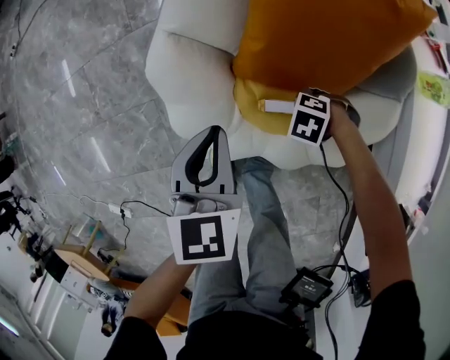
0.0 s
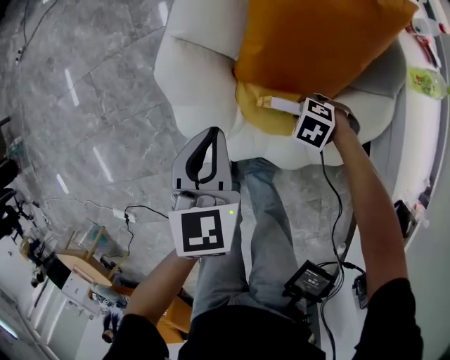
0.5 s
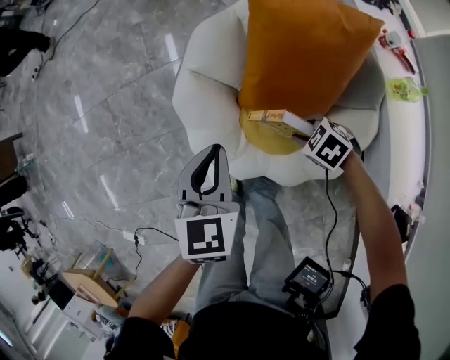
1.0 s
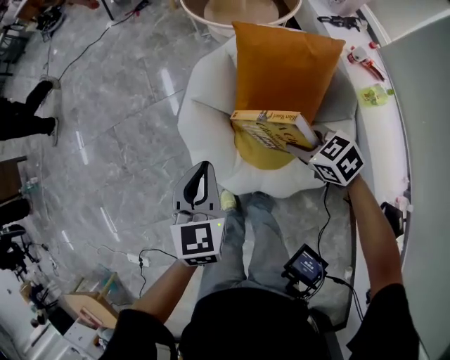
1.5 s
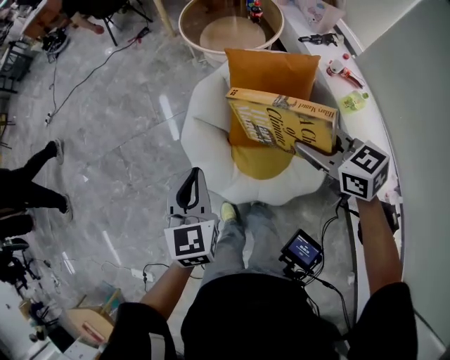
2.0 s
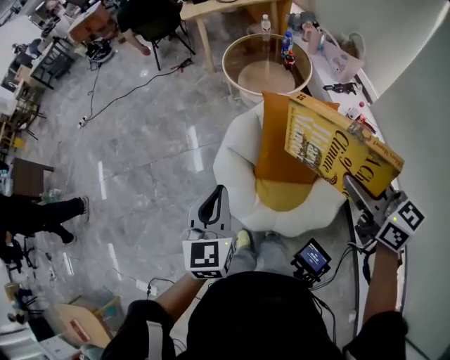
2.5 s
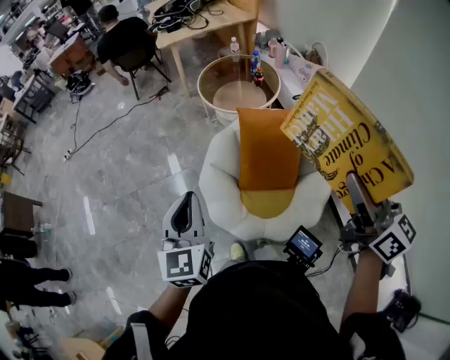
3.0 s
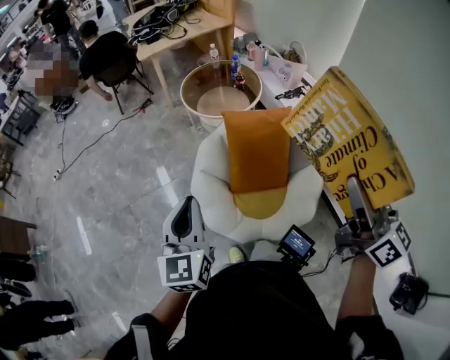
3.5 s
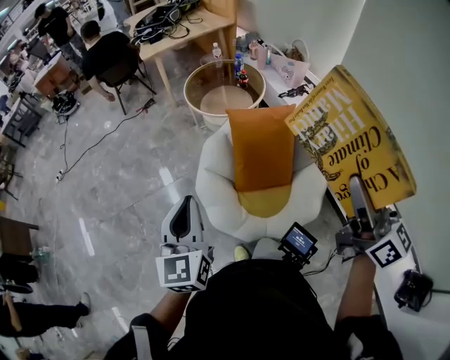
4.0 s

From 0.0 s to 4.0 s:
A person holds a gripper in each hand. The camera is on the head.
From 0.0 s to 2.0 s: The right gripper is displaced upward by roughly 50 cm, and tilts its fingers about 40 degrees upward, while the left gripper heads upward, covering approximately 30 cm.
From 2.0 s to 4.0 s: The right gripper moves upward and backward, about 30 cm, and tilts its fingers some 50 degrees upward. The left gripper shifts about 15 cm upward, and turns by approximately 20 degrees.

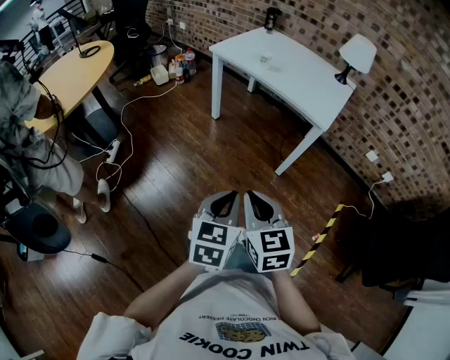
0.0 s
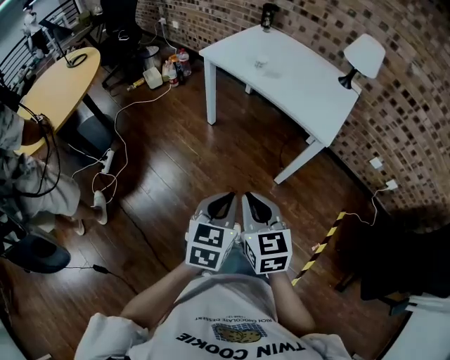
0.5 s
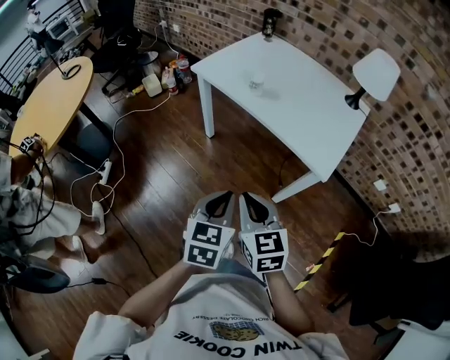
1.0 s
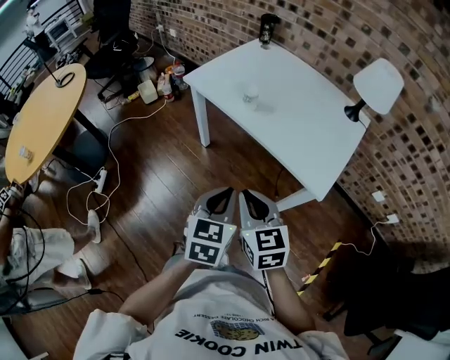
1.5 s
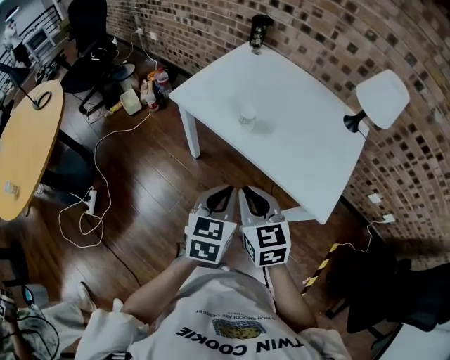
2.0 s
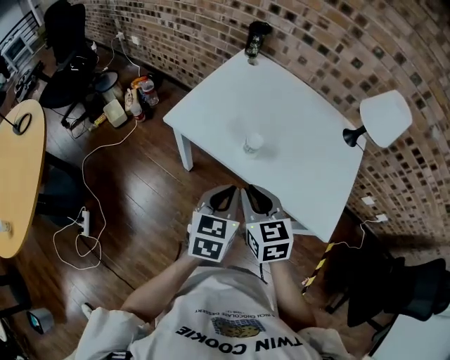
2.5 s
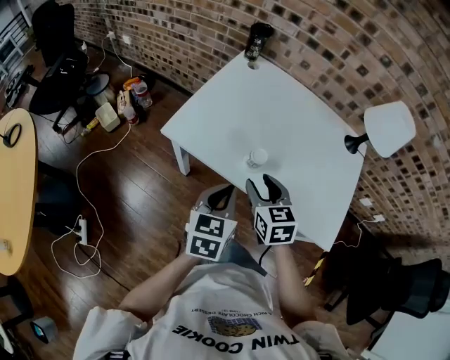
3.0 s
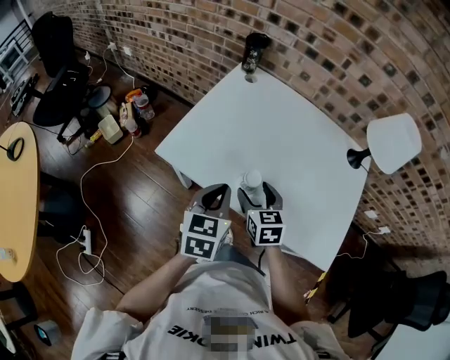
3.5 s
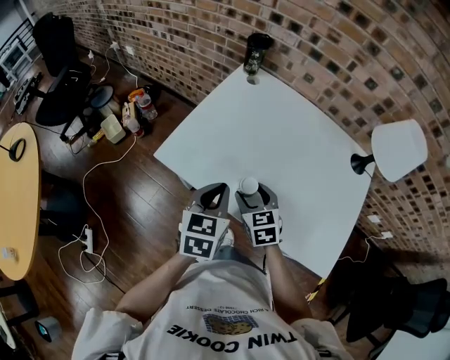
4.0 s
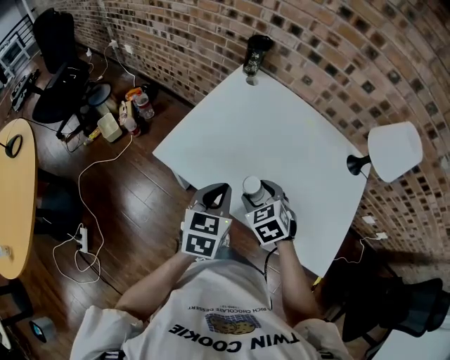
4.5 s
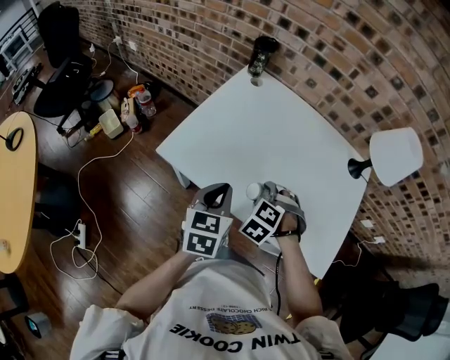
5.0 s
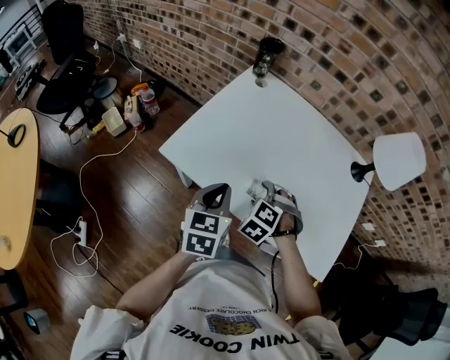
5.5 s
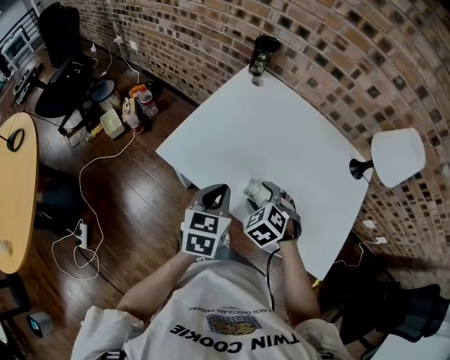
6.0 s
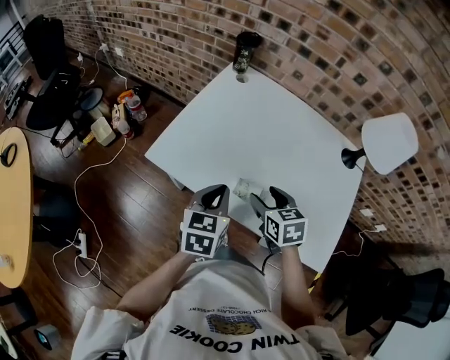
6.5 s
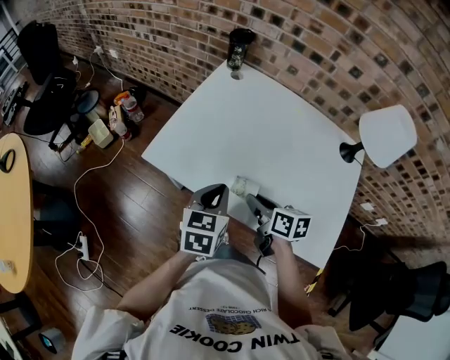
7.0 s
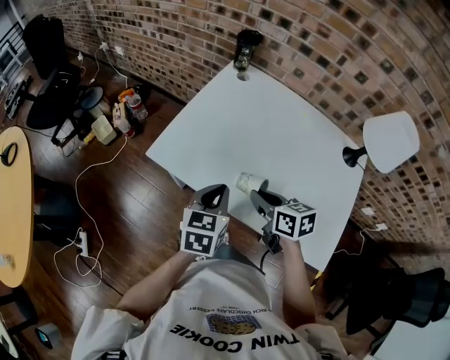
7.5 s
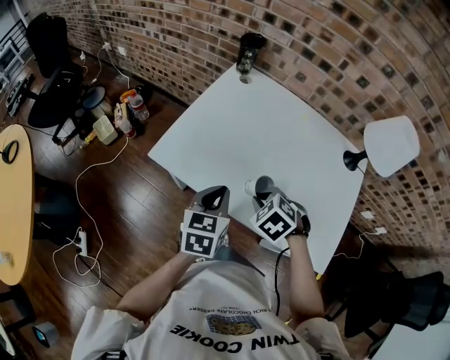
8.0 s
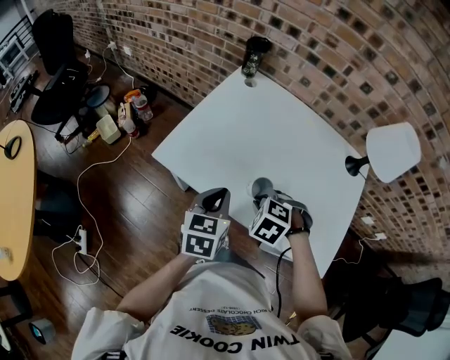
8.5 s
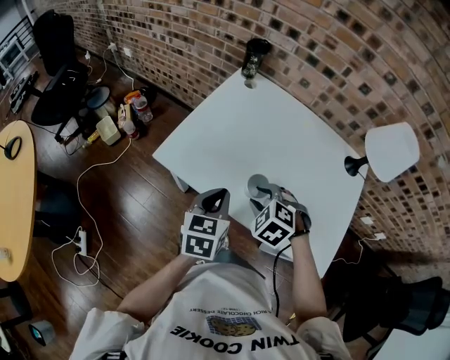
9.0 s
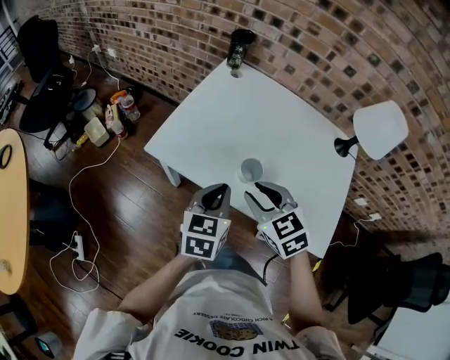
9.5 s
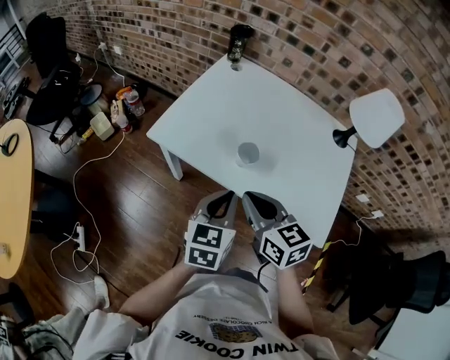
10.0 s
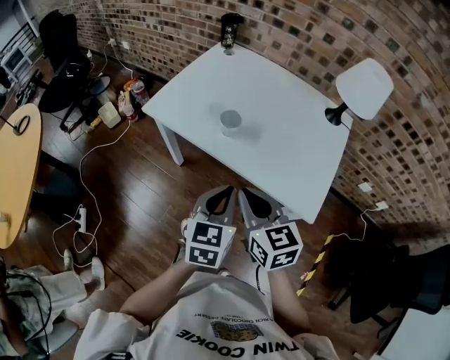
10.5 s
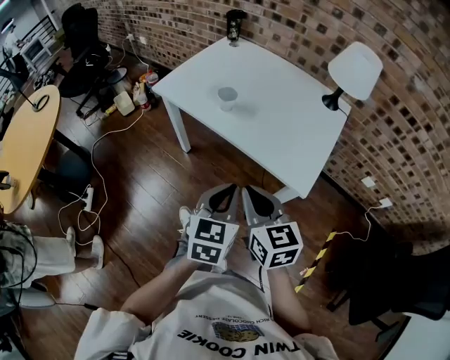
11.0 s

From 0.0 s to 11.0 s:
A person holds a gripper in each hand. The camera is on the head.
From 0.0 s to 2.0 s: Both grippers are carried forward, some 50 cm.
From 2.0 s to 3.5 s: Both grippers travel together forward, about 25 cm. The right gripper opens.
From 3.5 s to 5.5 s: The right gripper rolls counterclockwise, seen from behind, by roughly 60 degrees.
From 5.5 s to 7.5 s: The right gripper shifts approximately 5 cm upward, rolls clockwise, seen from behind, by approximately 70 degrees, and closes its fingers.
From 7.5 s to 9.0 s: The right gripper twists approximately 60 degrees counterclockwise, seen from behind, and opens up.
From 9.0 s to 11.0 s: The right gripper moves backward, about 35 cm, tips its fingers upward by approximately 40 degrees, and closes, while the left gripper heads backward and to the right, covering about 40 cm.

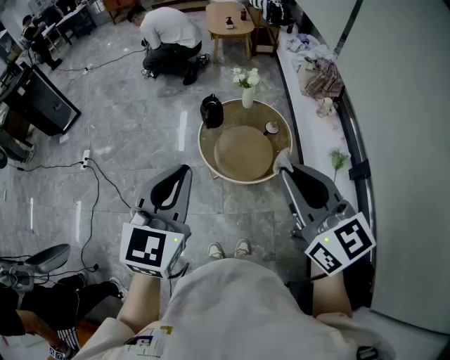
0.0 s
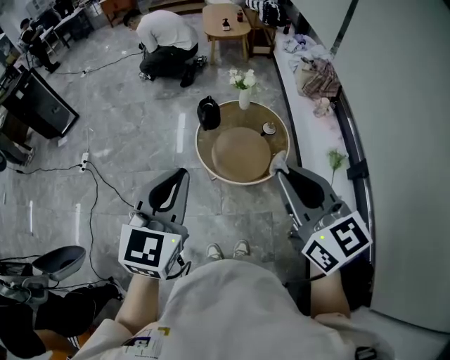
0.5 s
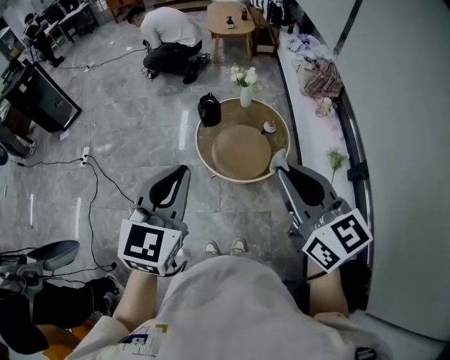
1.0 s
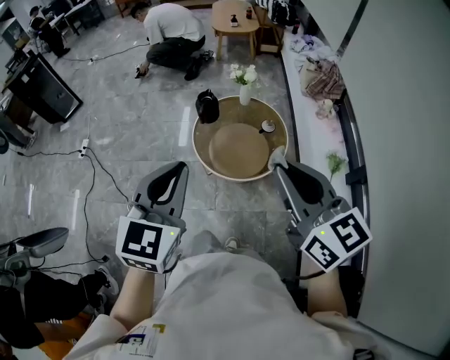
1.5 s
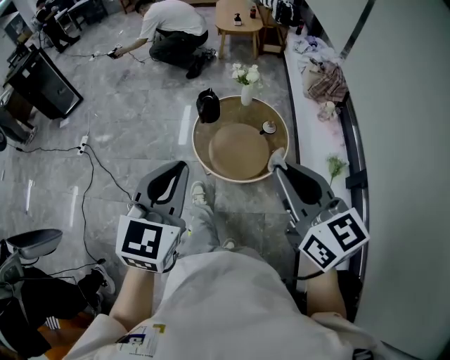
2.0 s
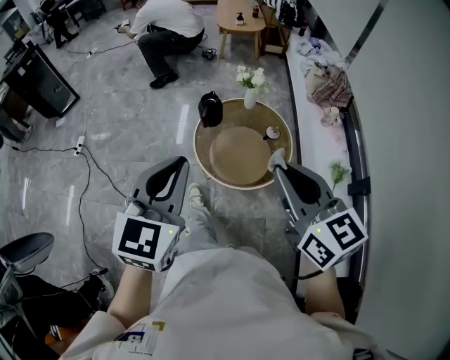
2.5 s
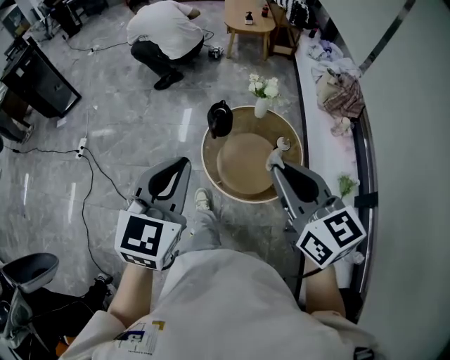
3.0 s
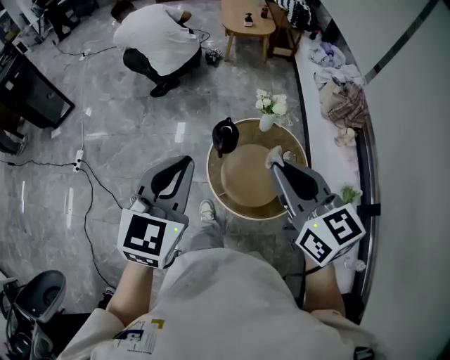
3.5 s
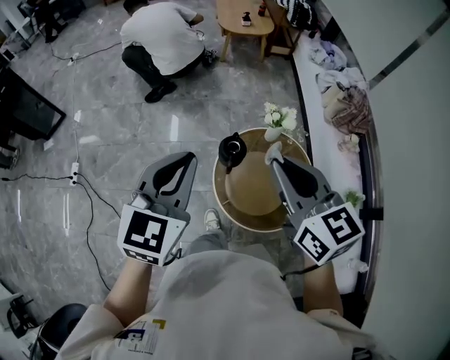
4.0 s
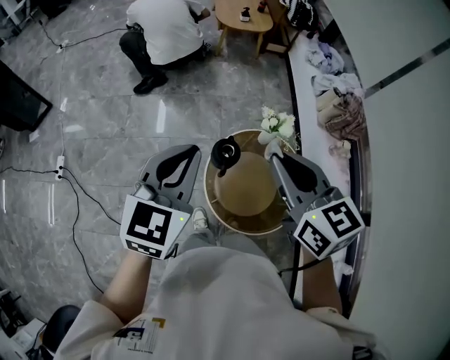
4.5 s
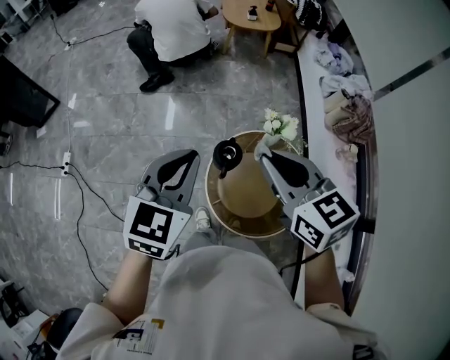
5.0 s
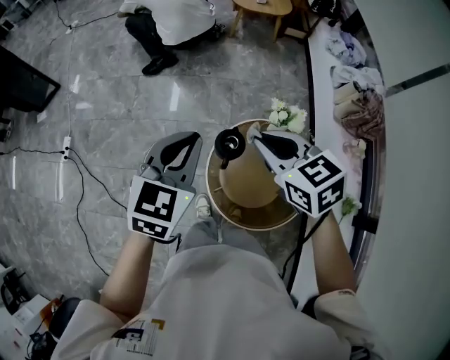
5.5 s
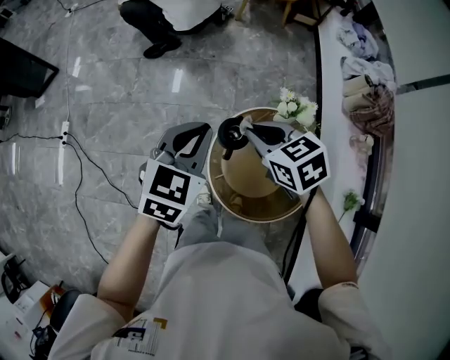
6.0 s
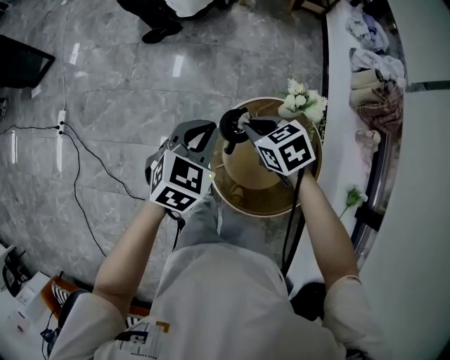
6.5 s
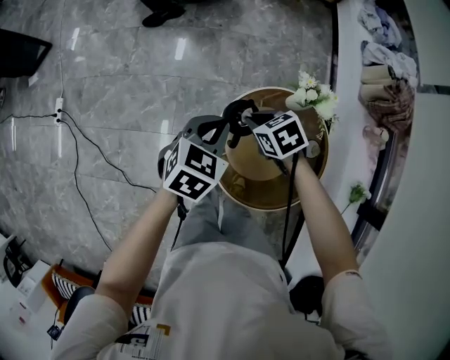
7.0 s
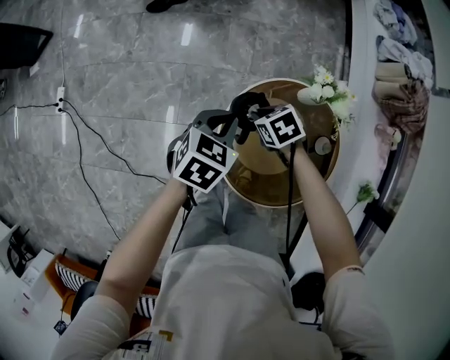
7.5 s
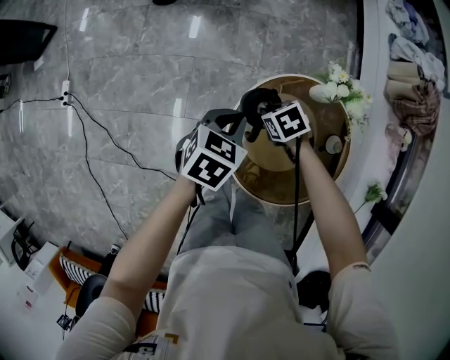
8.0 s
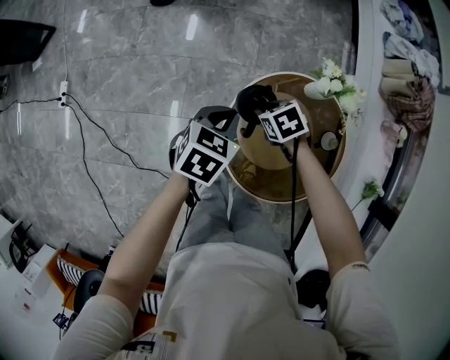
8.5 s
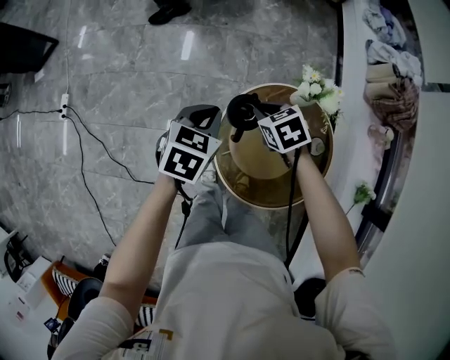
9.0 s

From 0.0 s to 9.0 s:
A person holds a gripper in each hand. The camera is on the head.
From 0.0 s to 2.0 s: The left gripper moves roughly 5 cm, while the right gripper shifts approximately 5 cm to the right.
From 2.0 s to 4.5 s: The two grippers travel together, forward, approximately 50 cm.
From 4.5 s to 7.0 s: The two grippers go about 35 cm downward. The right gripper angles its fingers downward, by approximately 40 degrees, while the left gripper changes its angle by some 30 degrees.
From 7.0 s to 9.0 s: The right gripper moves roughly 15 cm downward and comes back, while the left gripper reaches some 10 cm downward, then returns.

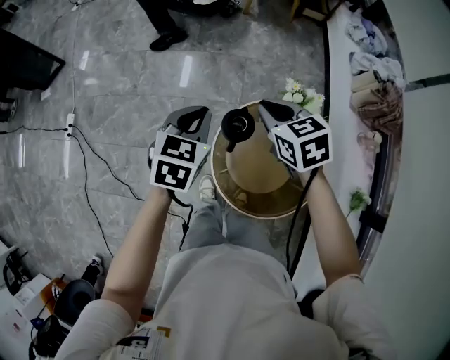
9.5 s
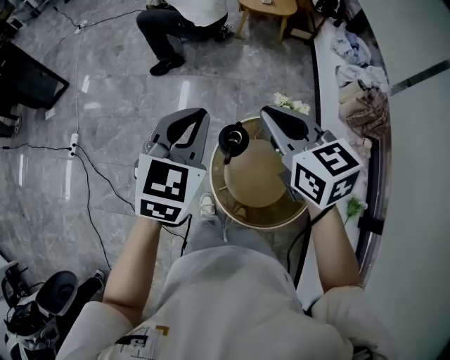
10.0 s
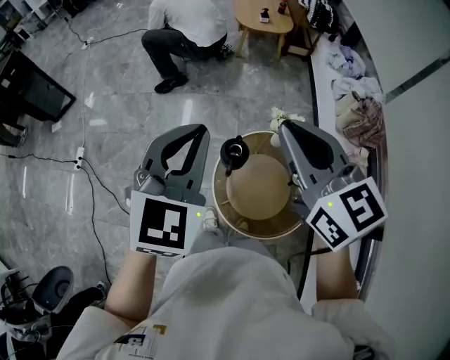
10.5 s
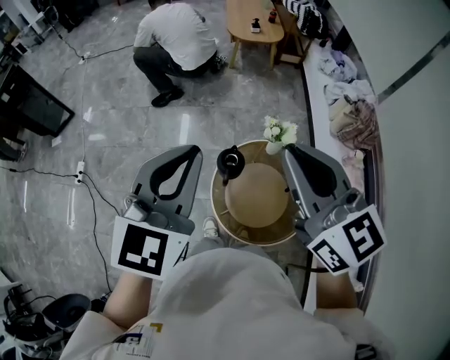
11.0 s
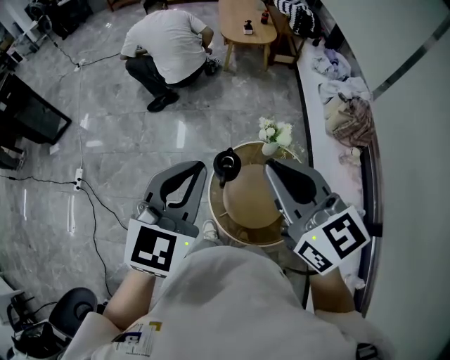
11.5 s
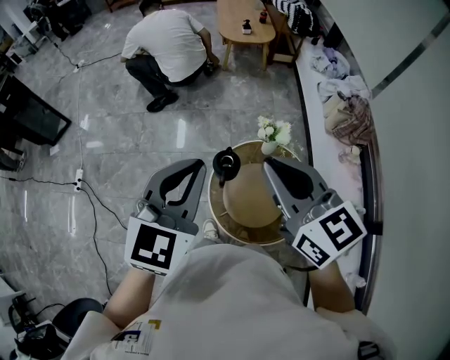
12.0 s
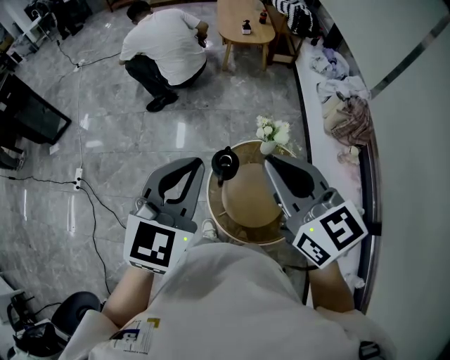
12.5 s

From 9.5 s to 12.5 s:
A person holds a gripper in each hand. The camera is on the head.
From 9.5 s to 11.0 s: The left gripper shifts about 30 cm upward, and turns by about 30 degrees. Meanwhile the right gripper goes some 35 cm upward and backward, and angles its fingers upward, by some 40 degrees.
From 11.0 s to 12.5 s: There are only small adjustments of the grippers.
